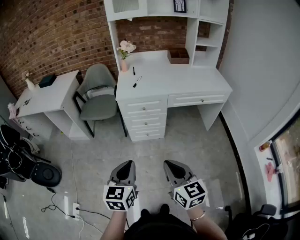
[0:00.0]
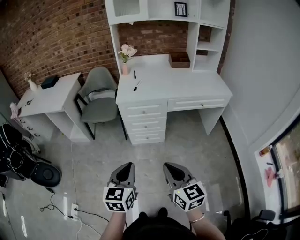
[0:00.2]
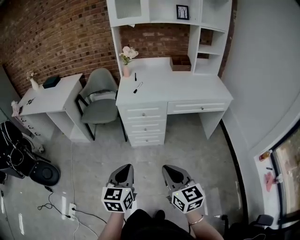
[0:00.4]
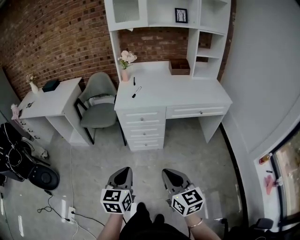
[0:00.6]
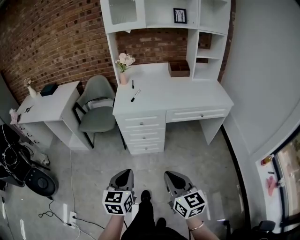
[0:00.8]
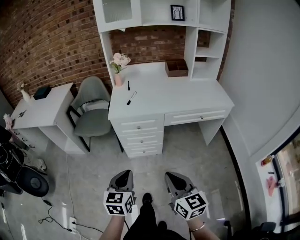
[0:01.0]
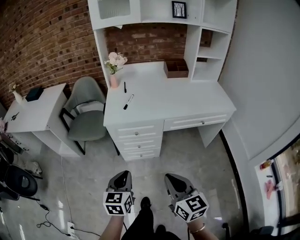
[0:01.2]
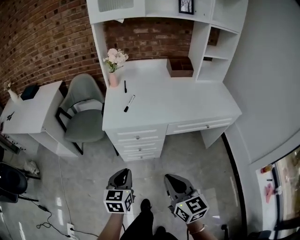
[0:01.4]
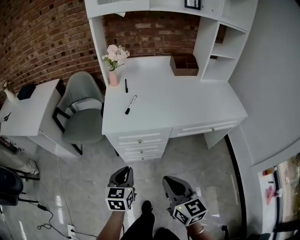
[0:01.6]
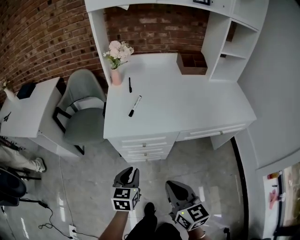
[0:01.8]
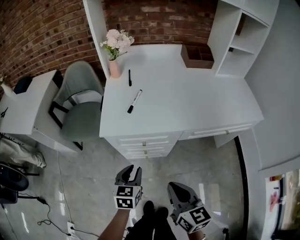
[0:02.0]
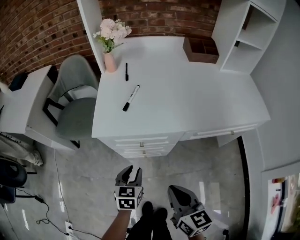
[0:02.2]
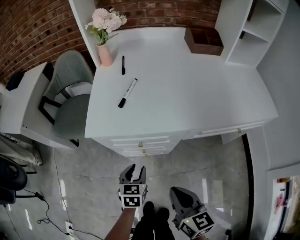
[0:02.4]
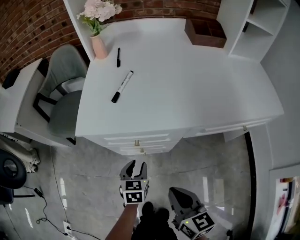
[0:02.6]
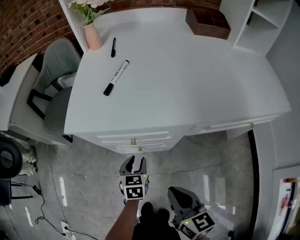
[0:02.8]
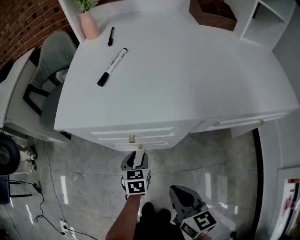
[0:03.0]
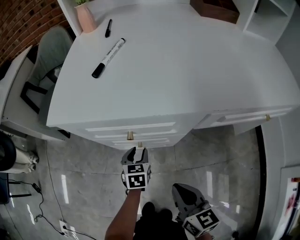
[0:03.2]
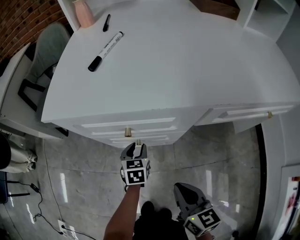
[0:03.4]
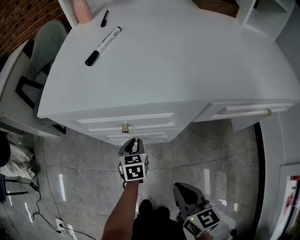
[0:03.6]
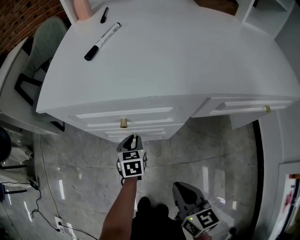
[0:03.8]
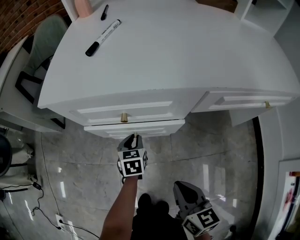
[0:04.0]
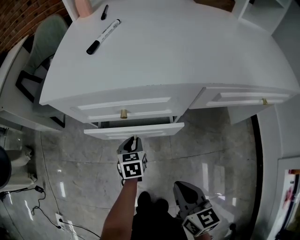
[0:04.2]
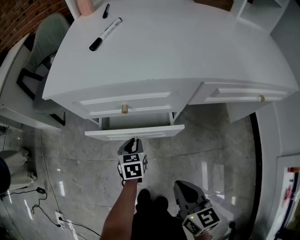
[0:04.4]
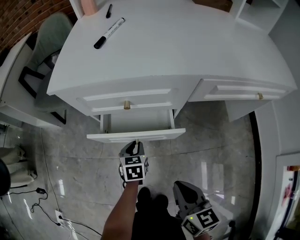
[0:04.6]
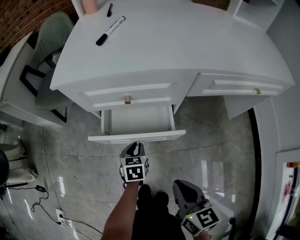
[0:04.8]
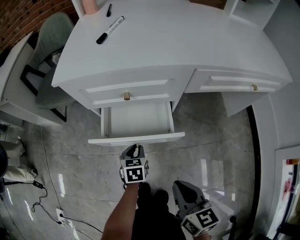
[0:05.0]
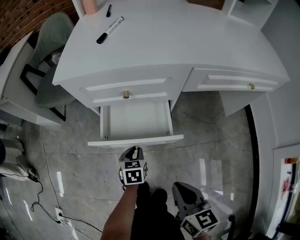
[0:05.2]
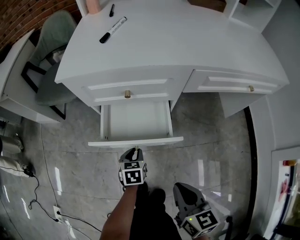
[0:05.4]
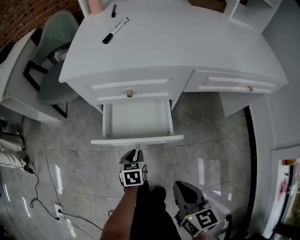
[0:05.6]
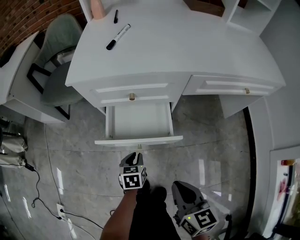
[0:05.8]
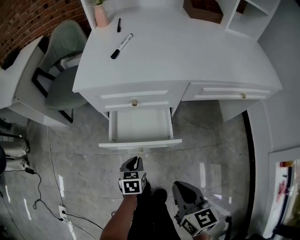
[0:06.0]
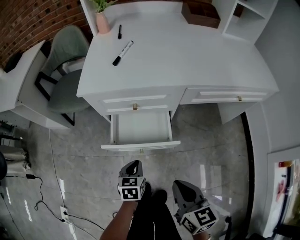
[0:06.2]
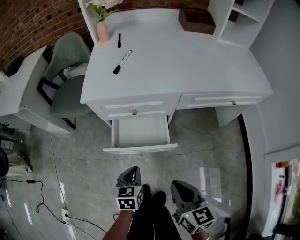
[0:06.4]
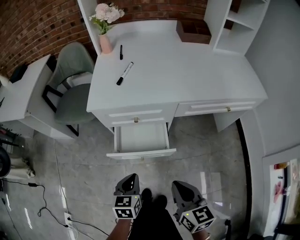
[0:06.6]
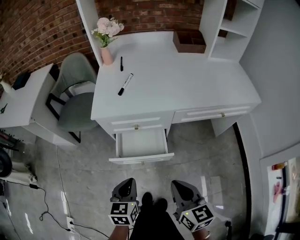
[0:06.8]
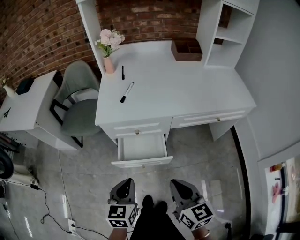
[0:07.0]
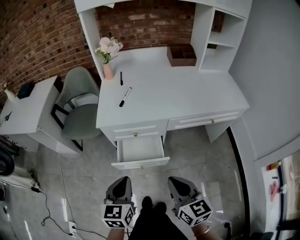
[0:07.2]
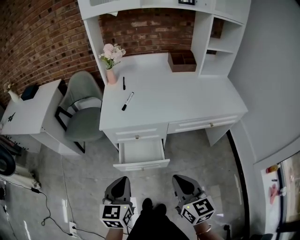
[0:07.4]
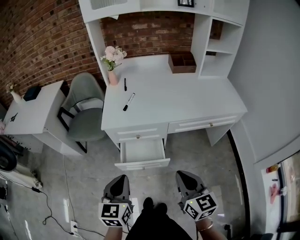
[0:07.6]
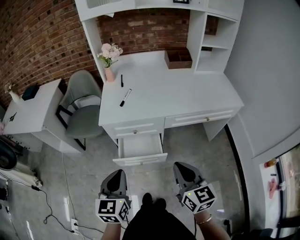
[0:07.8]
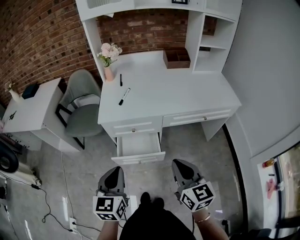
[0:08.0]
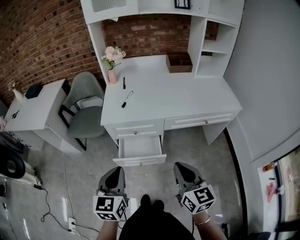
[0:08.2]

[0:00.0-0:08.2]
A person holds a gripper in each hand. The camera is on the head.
0.0 to 1.6 s: Both grippers move forward, approximately 30 cm.
1.6 to 3.2 s: The left gripper shifts approximately 40 cm downward and forward, and opens its fingers, while the right gripper heads downward, covering approximately 35 cm.
3.2 to 5.0 s: Both grippers travel together backward, approximately 10 cm.
5.0 to 6.6 s: The right gripper moves upward, some 15 cm, while the left gripper goes roughly 25 cm upward and backward.
6.6 to 8.2 s: The left gripper shifts about 30 cm upward, and turns by about 20 degrees. The right gripper shifts approximately 20 cm upward.

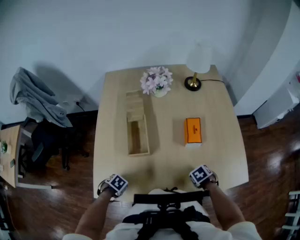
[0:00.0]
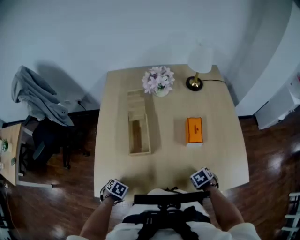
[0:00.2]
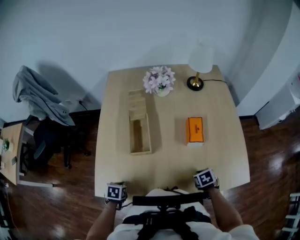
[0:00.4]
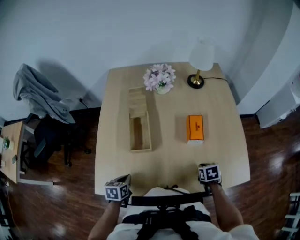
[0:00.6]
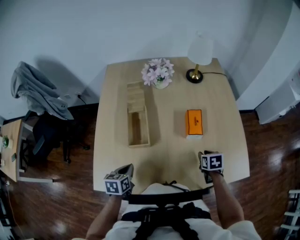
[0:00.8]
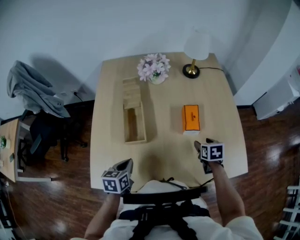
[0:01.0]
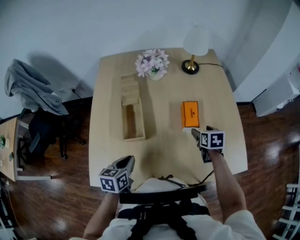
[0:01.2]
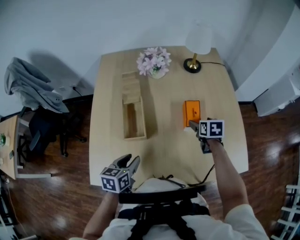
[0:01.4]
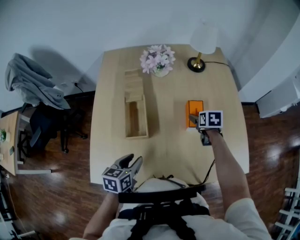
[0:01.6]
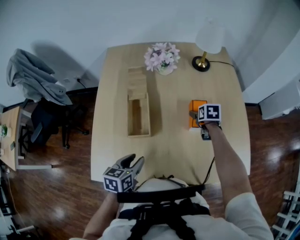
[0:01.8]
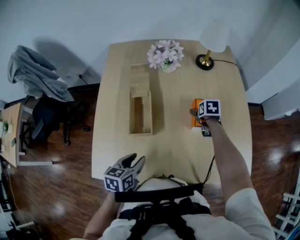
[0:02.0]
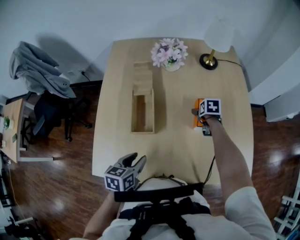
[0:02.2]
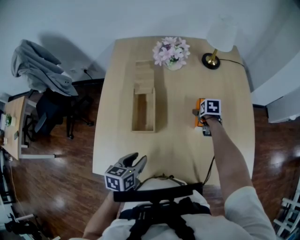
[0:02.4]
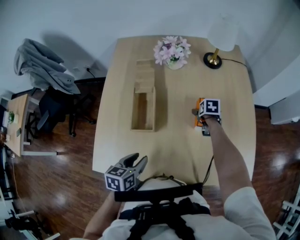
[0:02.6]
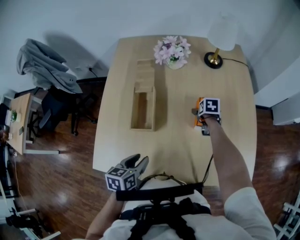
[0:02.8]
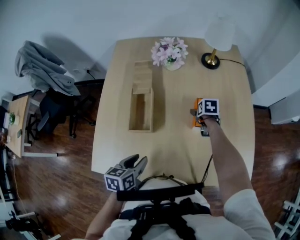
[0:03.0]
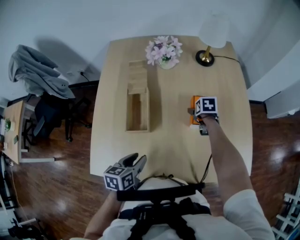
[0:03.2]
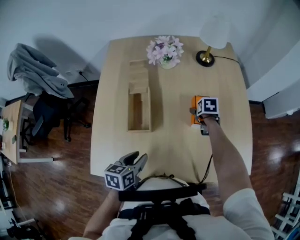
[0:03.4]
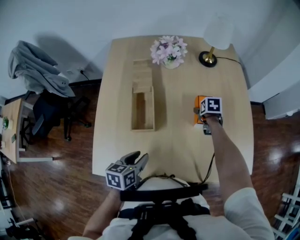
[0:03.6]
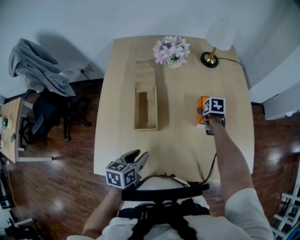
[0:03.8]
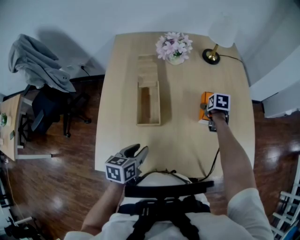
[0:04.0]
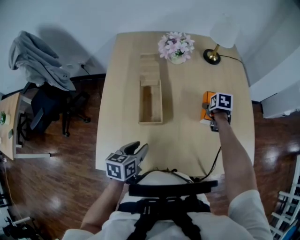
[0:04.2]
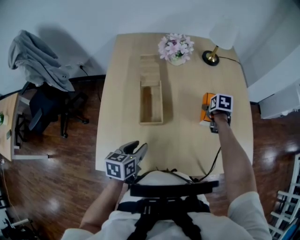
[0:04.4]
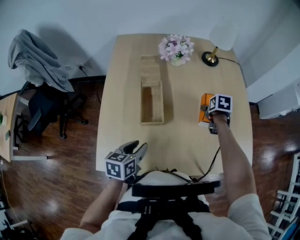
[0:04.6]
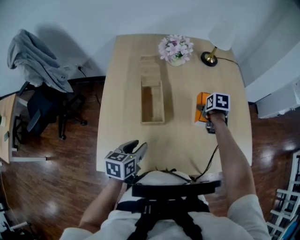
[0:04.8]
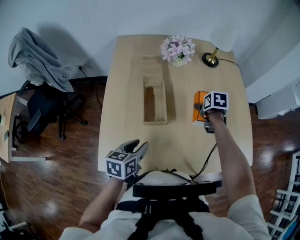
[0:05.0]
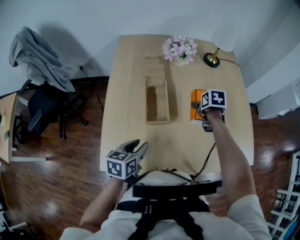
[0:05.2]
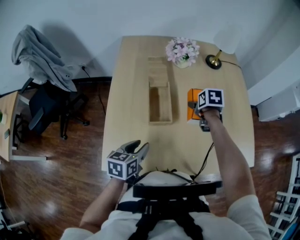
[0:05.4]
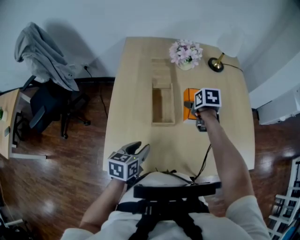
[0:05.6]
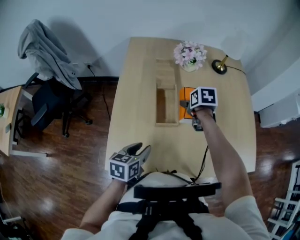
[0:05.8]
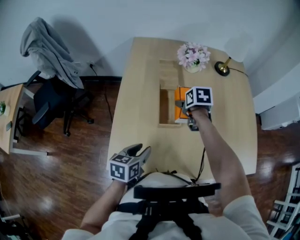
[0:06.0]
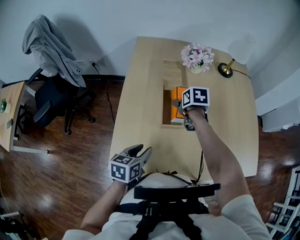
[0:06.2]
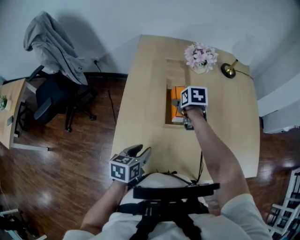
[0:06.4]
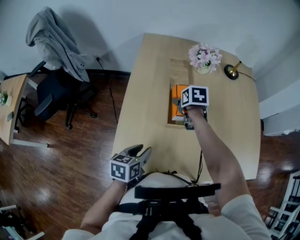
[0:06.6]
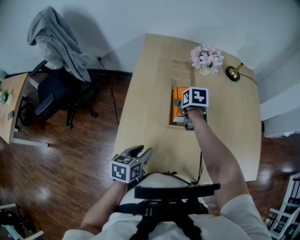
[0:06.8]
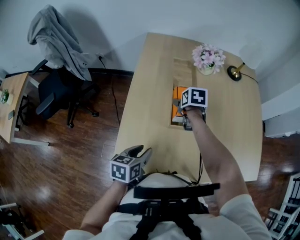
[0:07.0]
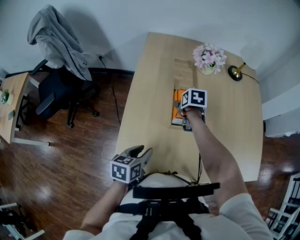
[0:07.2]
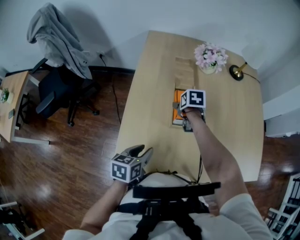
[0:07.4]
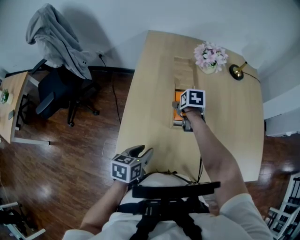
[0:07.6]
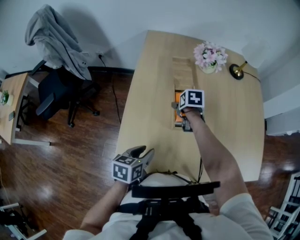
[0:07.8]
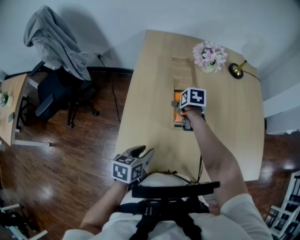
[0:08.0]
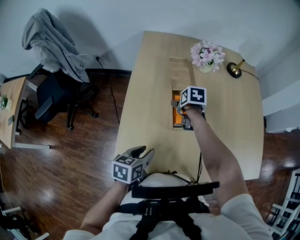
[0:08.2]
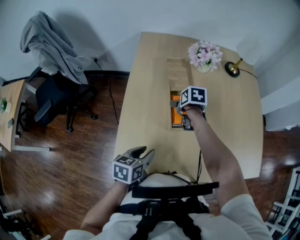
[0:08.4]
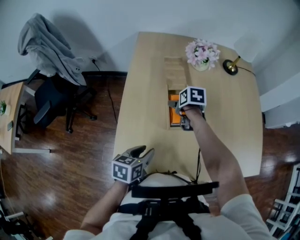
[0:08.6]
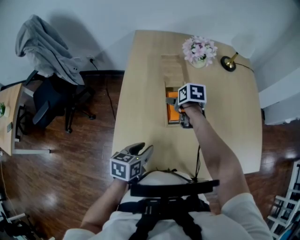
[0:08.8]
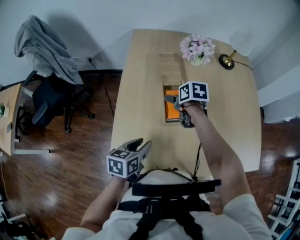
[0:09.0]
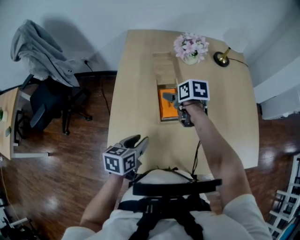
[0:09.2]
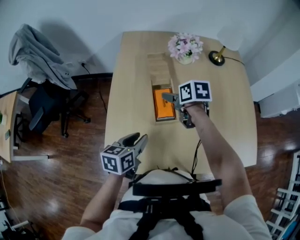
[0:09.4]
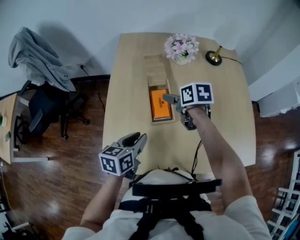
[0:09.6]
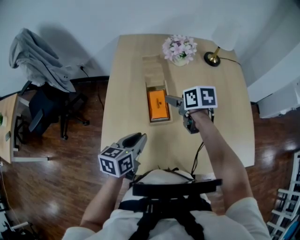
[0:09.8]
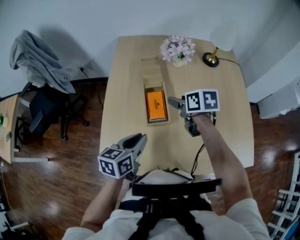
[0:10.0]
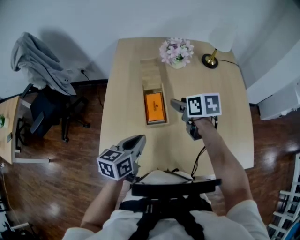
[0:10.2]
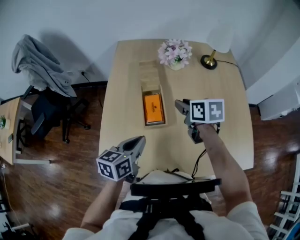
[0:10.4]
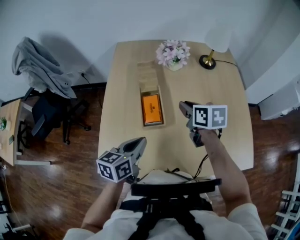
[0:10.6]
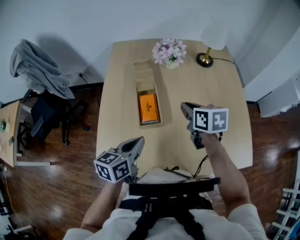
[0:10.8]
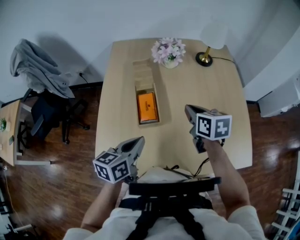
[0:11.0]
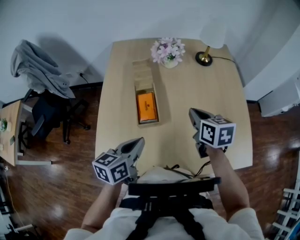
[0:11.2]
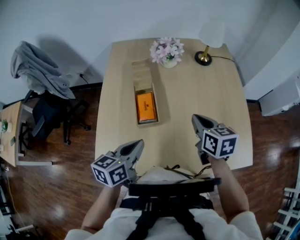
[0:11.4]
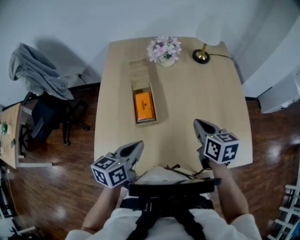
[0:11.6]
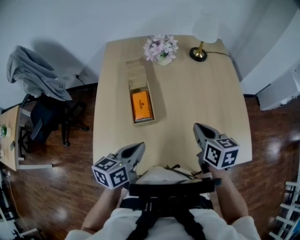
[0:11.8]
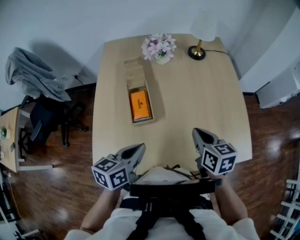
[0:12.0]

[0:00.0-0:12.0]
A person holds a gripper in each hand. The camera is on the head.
0.0 to 1.6 s: The right gripper shifts by approximately 25 cm, points its fingers about 30 degrees further upward, and opens; the left gripper moves some 20 cm, angles its fingers upward, by some 40 degrees, and opens.
1.6 to 3.0 s: The right gripper shifts roughly 5 cm downward.
3.0 to 4.4 s: The left gripper travels to the left by some 5 cm; the right gripper moves upward, roughly 5 cm.
4.4 to 6.0 s: The left gripper travels to the left by some 5 cm. The right gripper is displaced to the left by approximately 25 cm.
6.0 to 7.6 s: The right gripper goes approximately 10 cm to the left and downward.
7.6 to 9.0 s: The grippers move only a little.
9.0 to 10.4 s: The left gripper heads to the right and upward, covering roughly 10 cm, and closes up. Meanwhile the right gripper goes about 15 cm to the right, upward and backward, and closes its fingers.
10.4 to 12.0 s: The right gripper moves backward and to the right, about 20 cm, while the left gripper goes some 5 cm to the right.

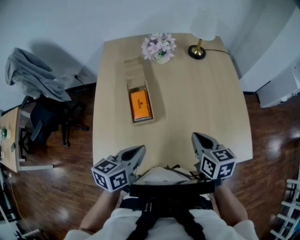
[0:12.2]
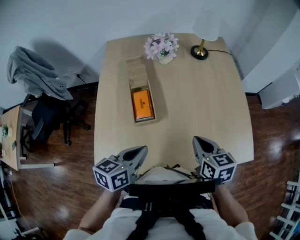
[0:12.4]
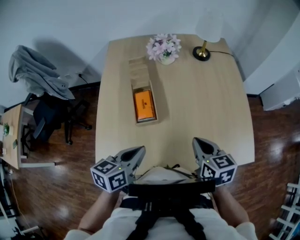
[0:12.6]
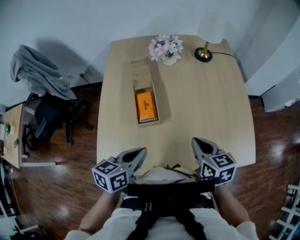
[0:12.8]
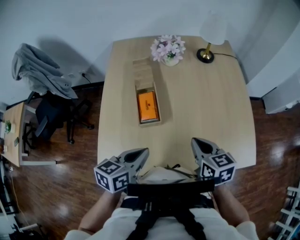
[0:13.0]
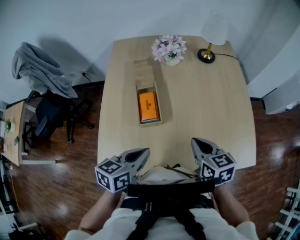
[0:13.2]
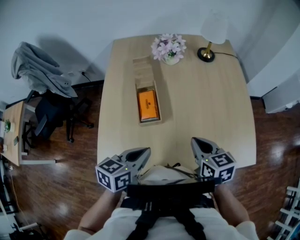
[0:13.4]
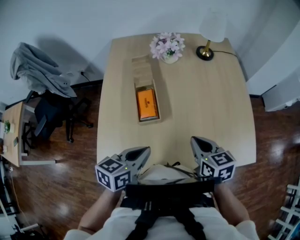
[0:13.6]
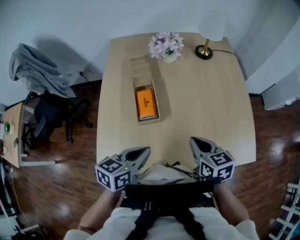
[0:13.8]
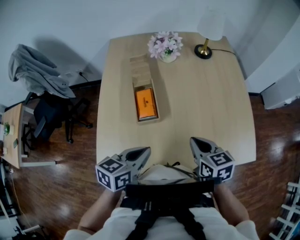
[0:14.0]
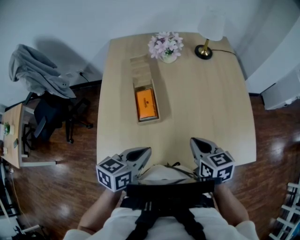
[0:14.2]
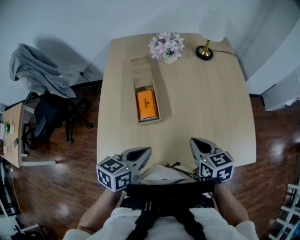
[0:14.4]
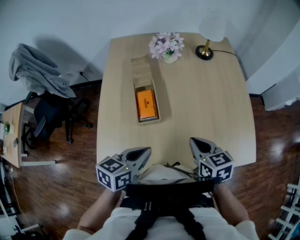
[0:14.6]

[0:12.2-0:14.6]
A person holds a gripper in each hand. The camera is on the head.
12.2 to 13.4 s: The grippers stay close to where they were, moving slightly.
13.4 to 14.6 s: The two grippers keep their place.

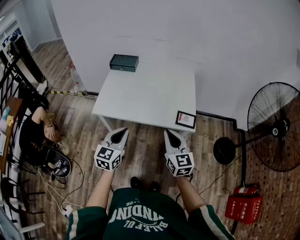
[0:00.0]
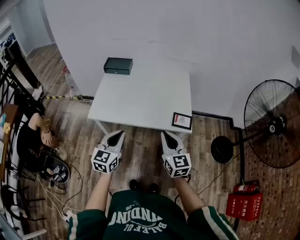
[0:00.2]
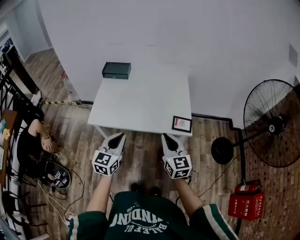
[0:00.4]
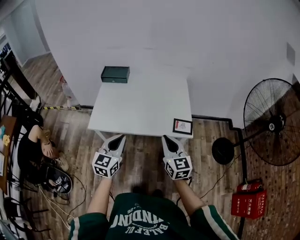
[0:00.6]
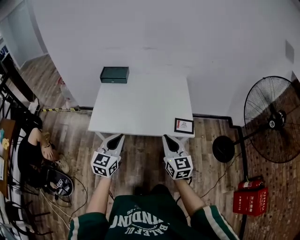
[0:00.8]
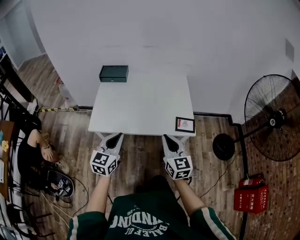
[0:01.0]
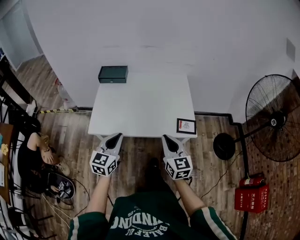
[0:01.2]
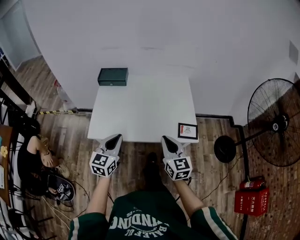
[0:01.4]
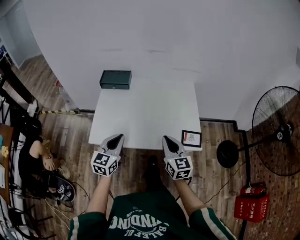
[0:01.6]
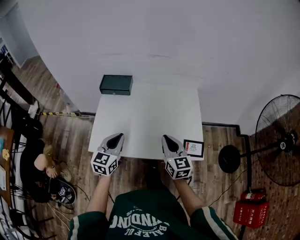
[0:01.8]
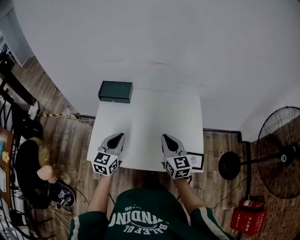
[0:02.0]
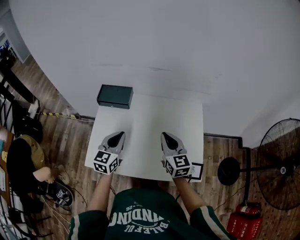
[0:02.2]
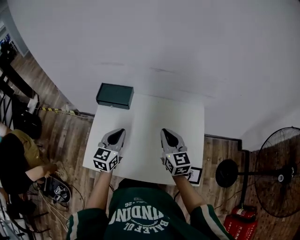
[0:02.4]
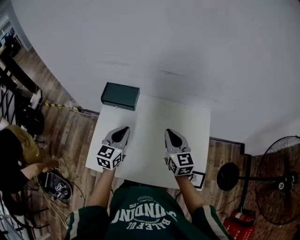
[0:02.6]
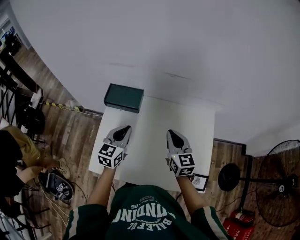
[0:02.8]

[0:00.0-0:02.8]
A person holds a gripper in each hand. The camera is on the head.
0.0 to 1.4 s: The right gripper heads forward, covering approximately 10 cm. Meanwhile the left gripper shifts about 10 cm forward and to the left.
1.4 to 2.8 s: The grippers both shift forward by roughly 35 cm.
